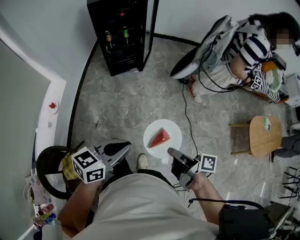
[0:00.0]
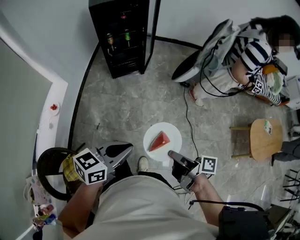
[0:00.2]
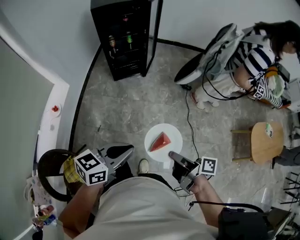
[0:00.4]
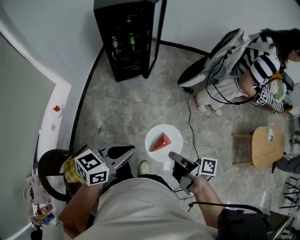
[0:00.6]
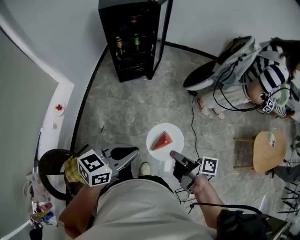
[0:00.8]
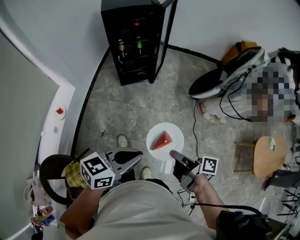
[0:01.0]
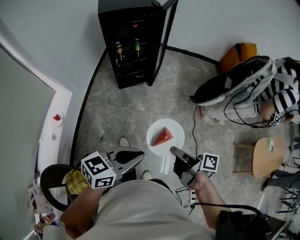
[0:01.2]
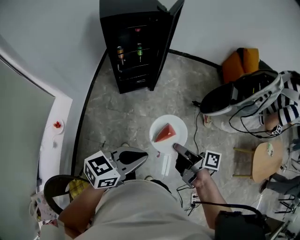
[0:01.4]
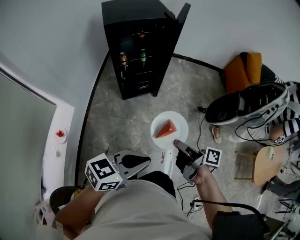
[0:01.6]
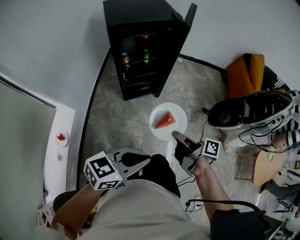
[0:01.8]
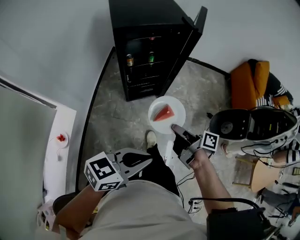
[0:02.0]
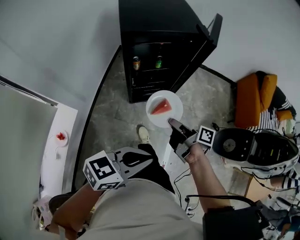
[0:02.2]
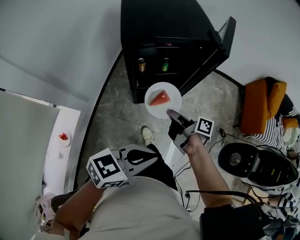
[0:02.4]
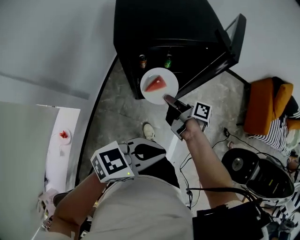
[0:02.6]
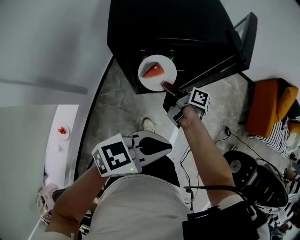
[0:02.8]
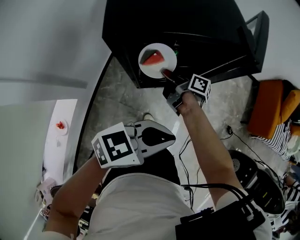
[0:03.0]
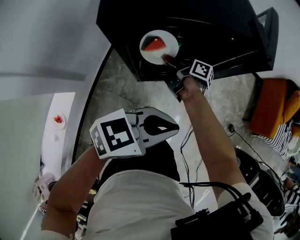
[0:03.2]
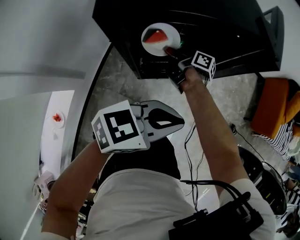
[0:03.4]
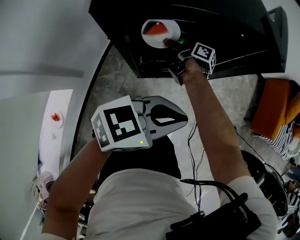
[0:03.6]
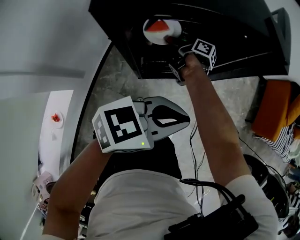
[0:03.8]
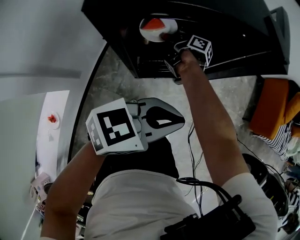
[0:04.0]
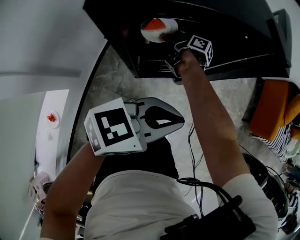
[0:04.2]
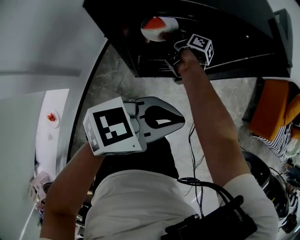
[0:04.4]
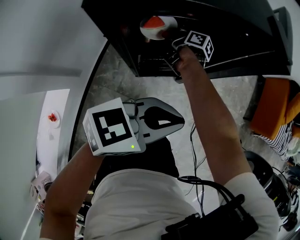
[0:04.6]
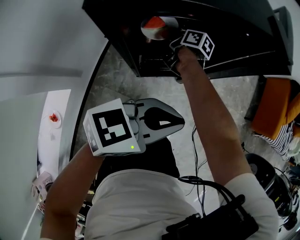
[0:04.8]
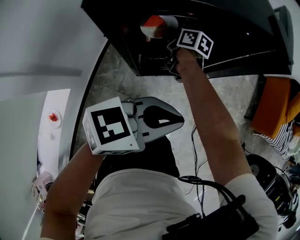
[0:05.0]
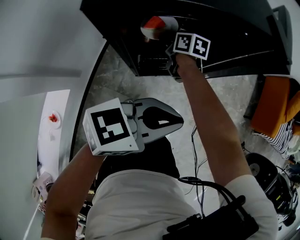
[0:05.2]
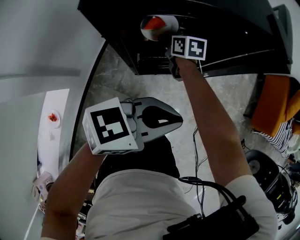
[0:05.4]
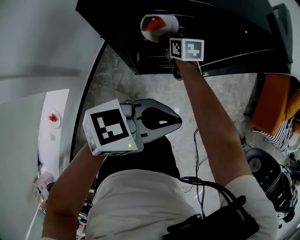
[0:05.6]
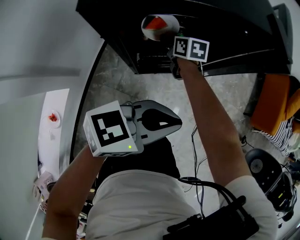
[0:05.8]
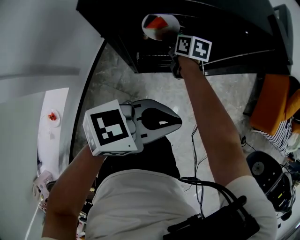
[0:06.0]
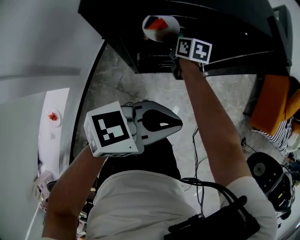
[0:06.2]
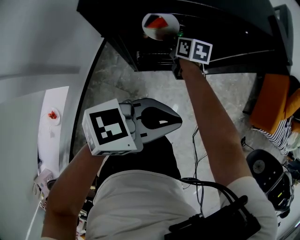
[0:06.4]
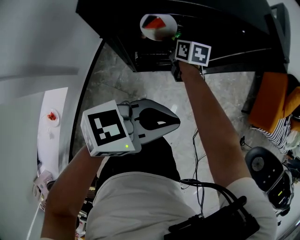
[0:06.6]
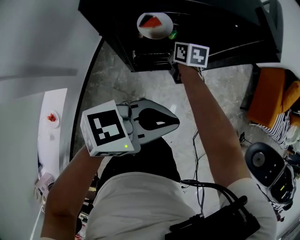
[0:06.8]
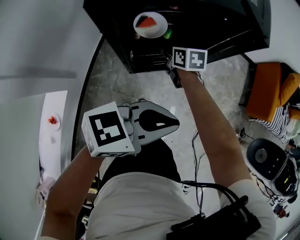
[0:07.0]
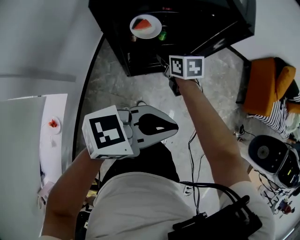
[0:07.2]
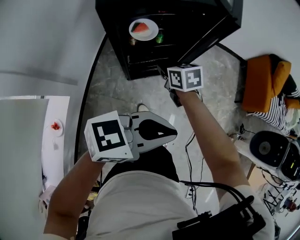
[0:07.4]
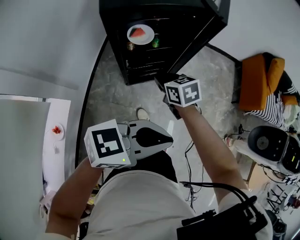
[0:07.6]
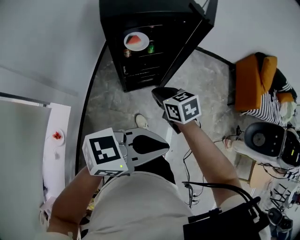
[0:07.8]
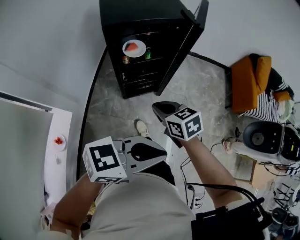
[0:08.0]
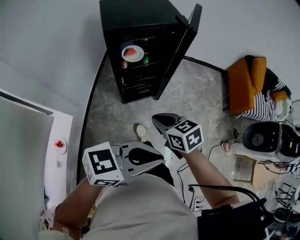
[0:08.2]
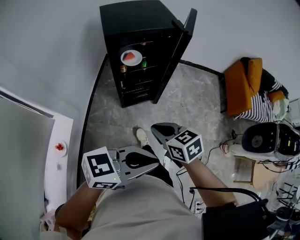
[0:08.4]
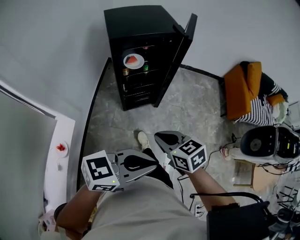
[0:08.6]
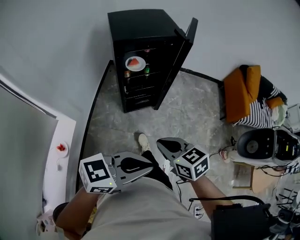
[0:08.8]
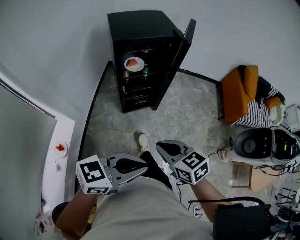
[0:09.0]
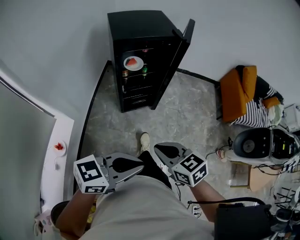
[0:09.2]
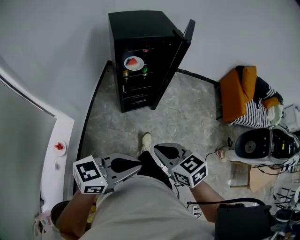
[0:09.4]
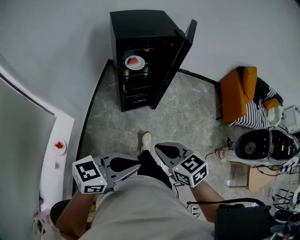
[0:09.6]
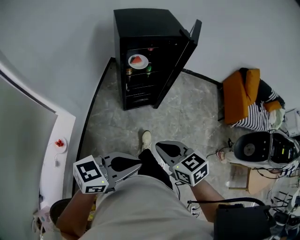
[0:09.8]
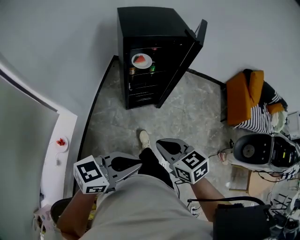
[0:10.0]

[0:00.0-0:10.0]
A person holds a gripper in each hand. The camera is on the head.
0:00.0 to 0:01.4: The two grippers go roughly 20 cm forward and to the left.
0:01.4 to 0:02.8: The pair of grippers is taken approximately 60 cm.
0:02.8 to 0:04.2: The right gripper changes place by approximately 20 cm, while the left gripper changes place by about 10 cm.
0:04.2 to 0:05.8: The right gripper rotates around the line of its fingers by some 50 degrees, counterclockwise from behind, and opens its fingers.
0:05.8 to 0:07.2: The right gripper shifts roughly 15 cm backward, to the right and upward, while the left gripper travels backward and upward by about 10 cm.
0:07.2 to 0:08.6: The left gripper changes place by approximately 25 cm, while the right gripper shifts by approximately 40 cm, and closes.
0:08.6 to 0:10.0: The left gripper ends up about 5 cm from where it was.

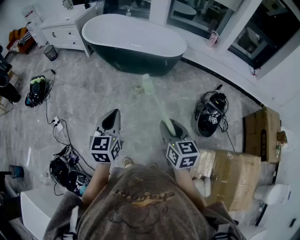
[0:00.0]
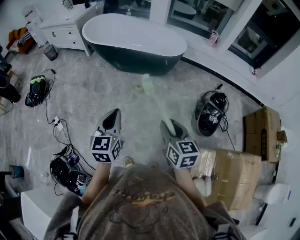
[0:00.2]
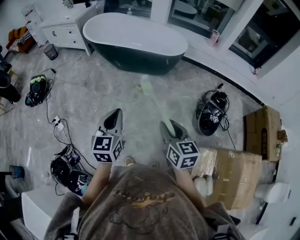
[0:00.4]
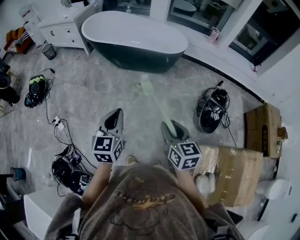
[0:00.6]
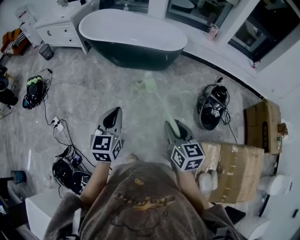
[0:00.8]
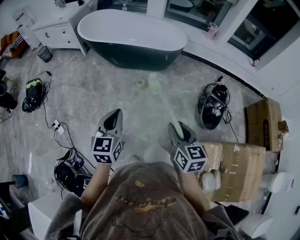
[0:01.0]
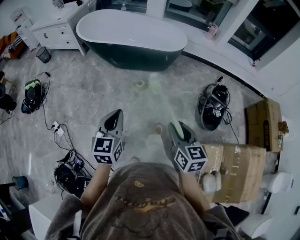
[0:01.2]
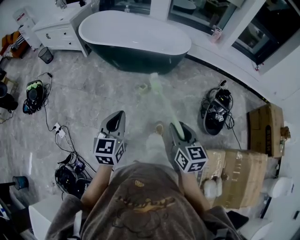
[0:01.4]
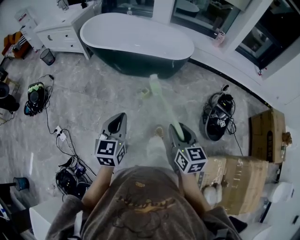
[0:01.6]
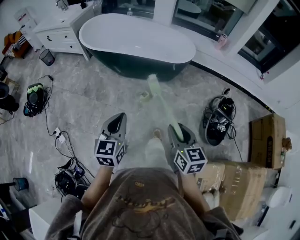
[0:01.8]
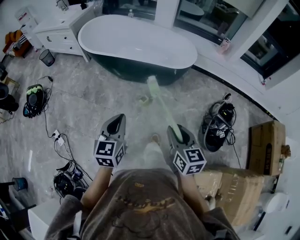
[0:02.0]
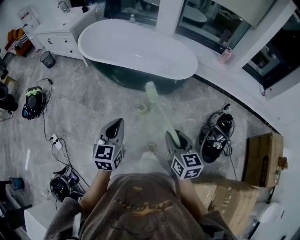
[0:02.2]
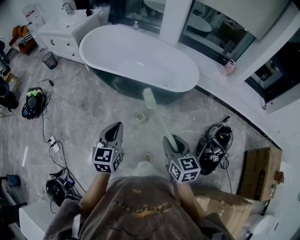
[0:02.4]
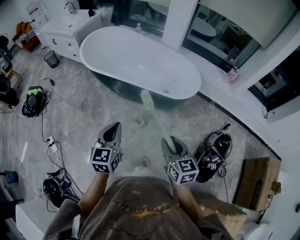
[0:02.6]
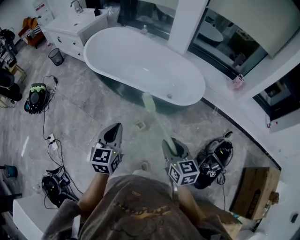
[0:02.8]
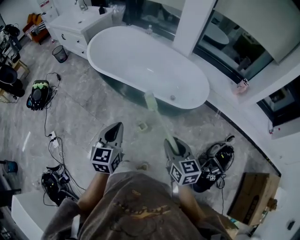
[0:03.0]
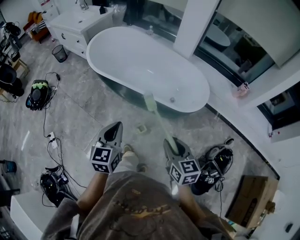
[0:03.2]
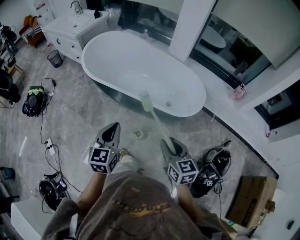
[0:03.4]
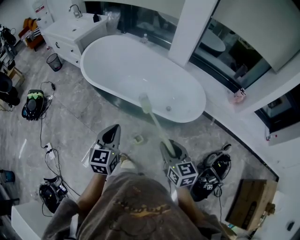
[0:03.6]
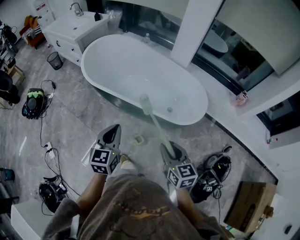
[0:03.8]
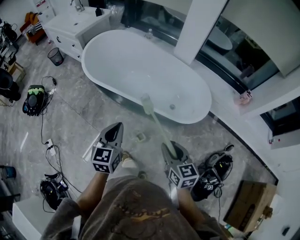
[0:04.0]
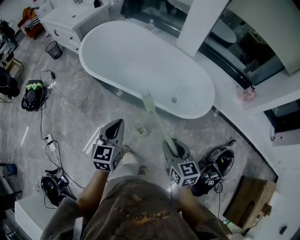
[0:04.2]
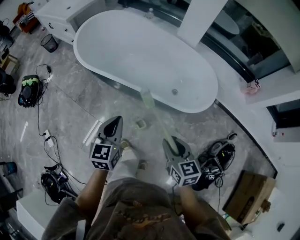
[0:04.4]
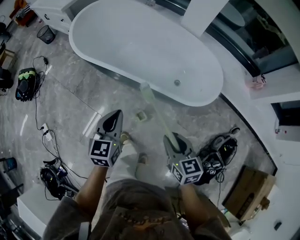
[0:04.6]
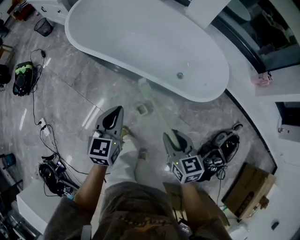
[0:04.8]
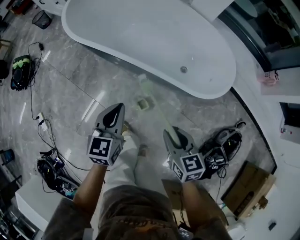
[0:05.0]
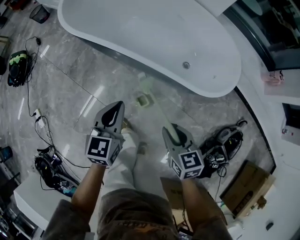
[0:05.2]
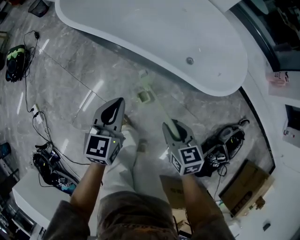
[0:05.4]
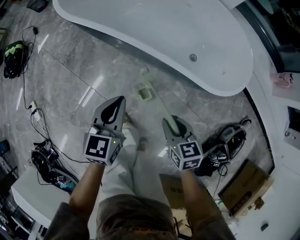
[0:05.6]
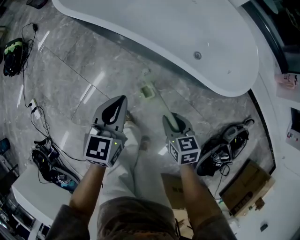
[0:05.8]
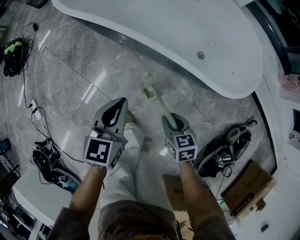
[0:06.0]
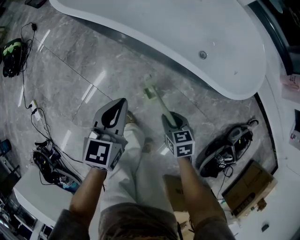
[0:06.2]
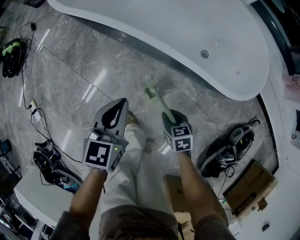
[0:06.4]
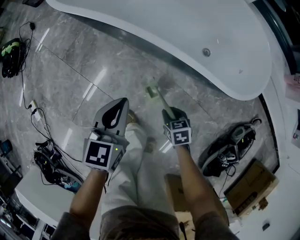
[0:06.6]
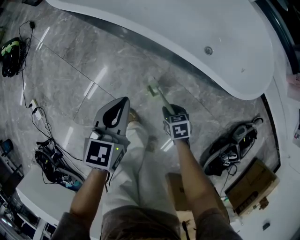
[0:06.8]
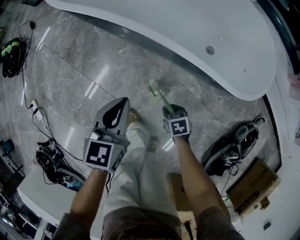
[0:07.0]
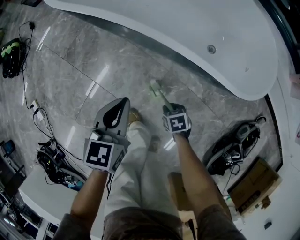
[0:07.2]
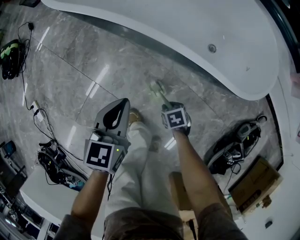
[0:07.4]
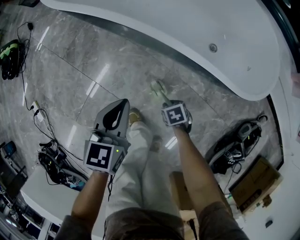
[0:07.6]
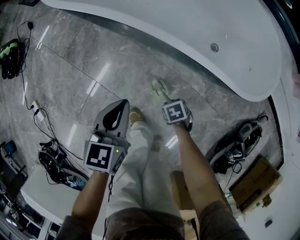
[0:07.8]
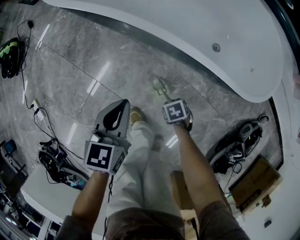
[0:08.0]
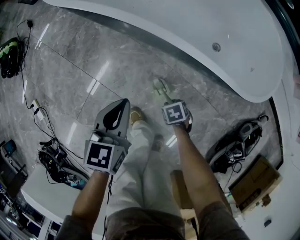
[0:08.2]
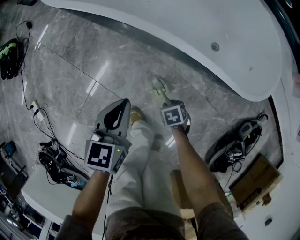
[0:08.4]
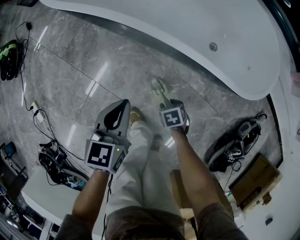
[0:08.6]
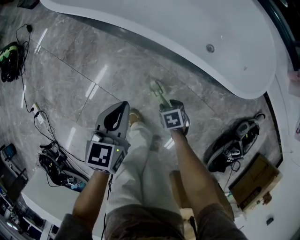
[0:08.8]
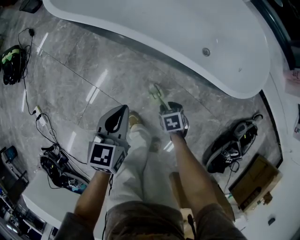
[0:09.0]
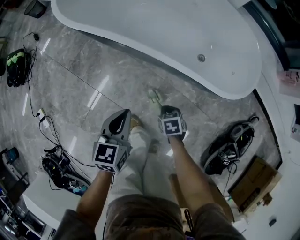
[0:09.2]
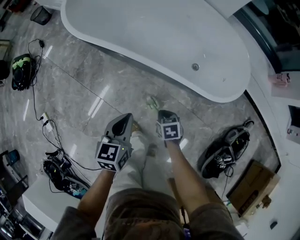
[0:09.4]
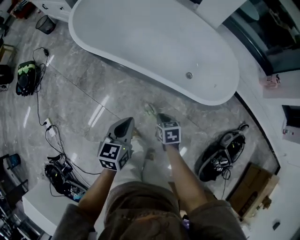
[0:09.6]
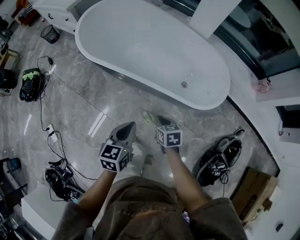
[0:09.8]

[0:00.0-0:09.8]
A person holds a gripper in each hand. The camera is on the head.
0:00.0 to 0:01.4: The right gripper changes place by some 5 cm. The left gripper is displaced forward and to the left by approximately 10 cm.
0:01.4 to 0:02.8: Both grippers move forward, approximately 35 cm.
0:02.8 to 0:04.2: The two grippers go roughly 15 cm forward.
0:04.2 to 0:05.6: The two grippers go roughly 25 cm downward.
0:05.6 to 0:07.0: The left gripper moves downward, approximately 10 cm. Meanwhile the right gripper shifts approximately 25 cm downward, and rotates roughly 30 degrees.
0:07.0 to 0:08.4: The grippers make only small movements.
0:08.4 to 0:09.8: The right gripper moves upward, roughly 35 cm, changes its angle by approximately 30 degrees, and closes its fingers. The left gripper travels upward by some 20 cm.

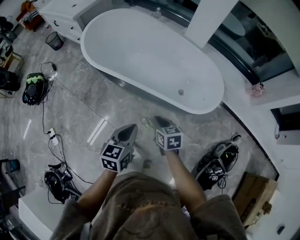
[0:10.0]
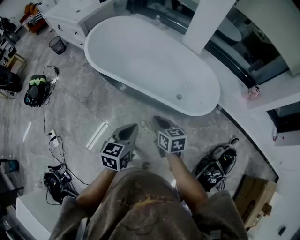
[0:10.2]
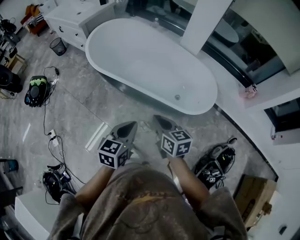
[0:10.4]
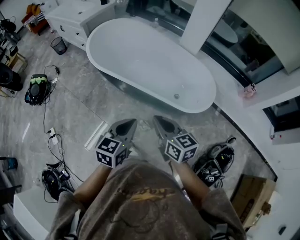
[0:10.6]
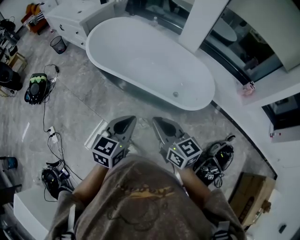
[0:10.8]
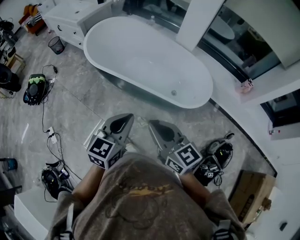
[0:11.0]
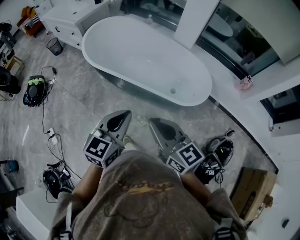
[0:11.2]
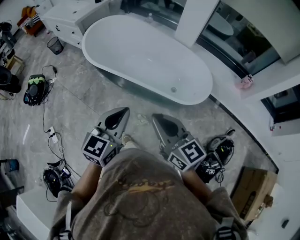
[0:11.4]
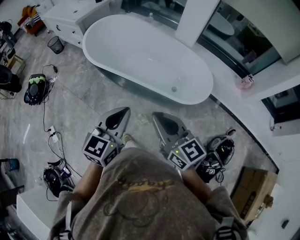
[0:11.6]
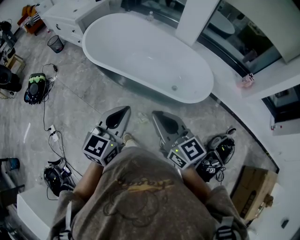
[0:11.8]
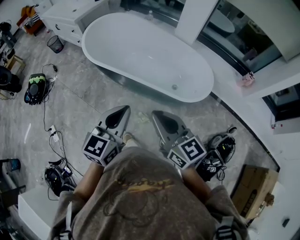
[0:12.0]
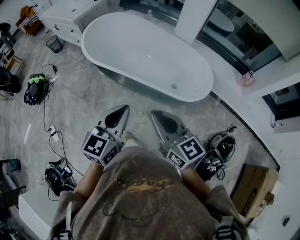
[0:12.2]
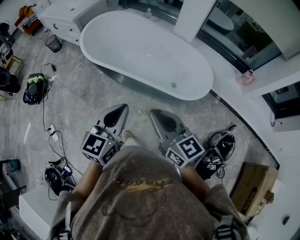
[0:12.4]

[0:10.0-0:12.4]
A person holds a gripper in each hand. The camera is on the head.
0:10.0 to 0:11.2: The right gripper heads upward and backward, covering some 30 cm, and points its fingers about 40 degrees further upward; the left gripper moves upward, approximately 15 cm, and changes its angle by roughly 20 degrees.
0:11.2 to 0:12.4: The grippers make only small movements.

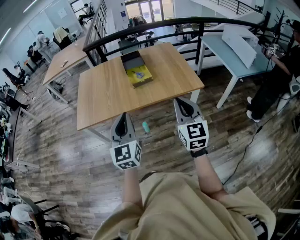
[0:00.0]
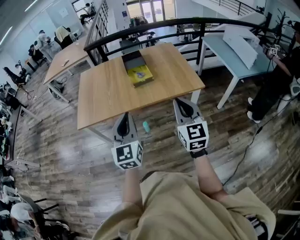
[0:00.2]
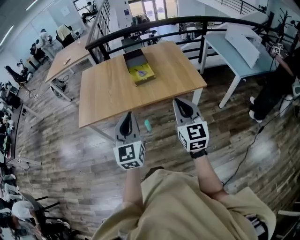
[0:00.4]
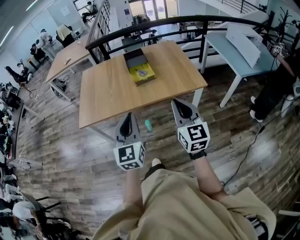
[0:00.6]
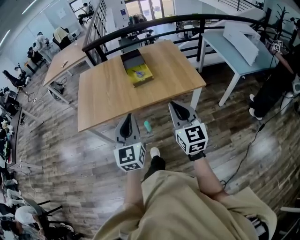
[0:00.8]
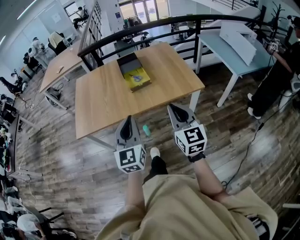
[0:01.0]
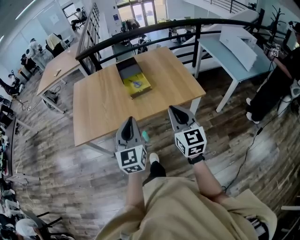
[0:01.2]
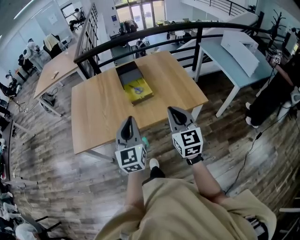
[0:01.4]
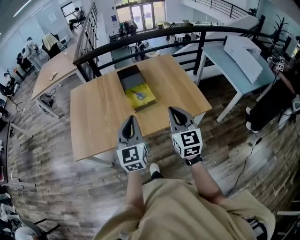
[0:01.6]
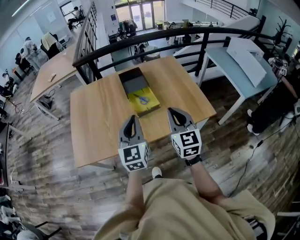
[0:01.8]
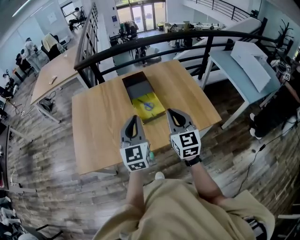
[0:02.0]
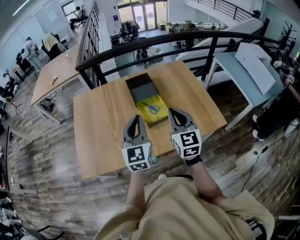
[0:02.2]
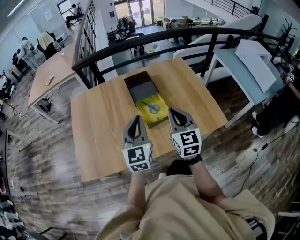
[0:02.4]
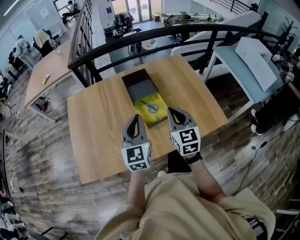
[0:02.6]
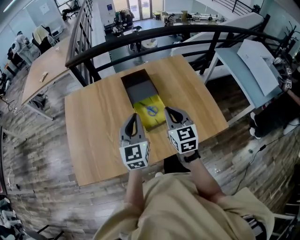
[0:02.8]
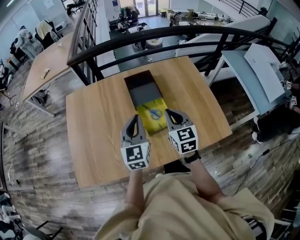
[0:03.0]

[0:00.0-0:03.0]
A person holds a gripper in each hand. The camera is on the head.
0:00.0 to 0:01.6: Both grippers move forward, approximately 25 cm.
0:01.6 to 0:03.0: Both grippers move forward, some 30 cm.
